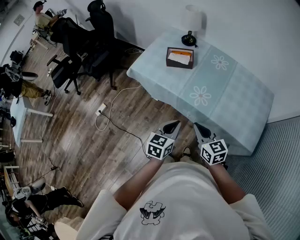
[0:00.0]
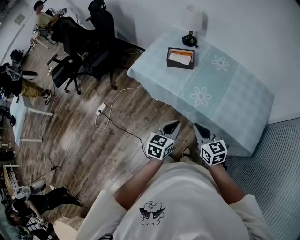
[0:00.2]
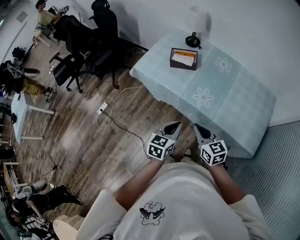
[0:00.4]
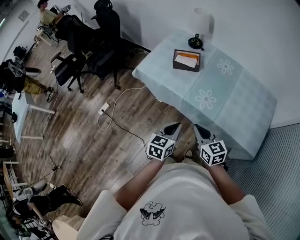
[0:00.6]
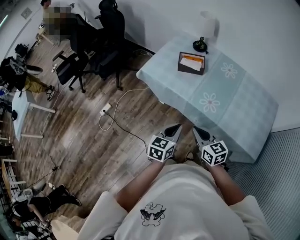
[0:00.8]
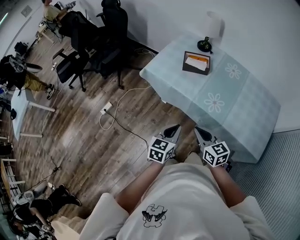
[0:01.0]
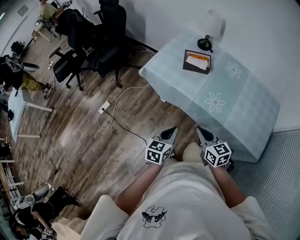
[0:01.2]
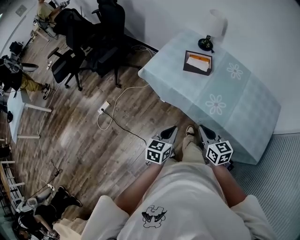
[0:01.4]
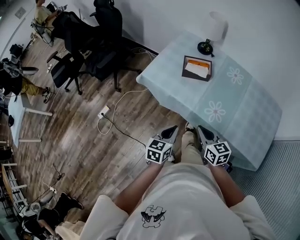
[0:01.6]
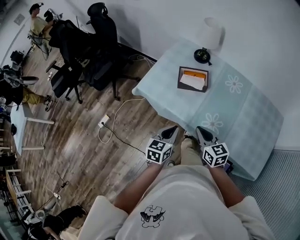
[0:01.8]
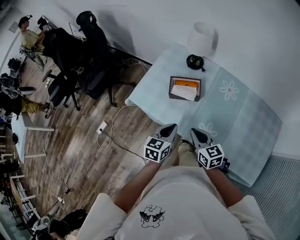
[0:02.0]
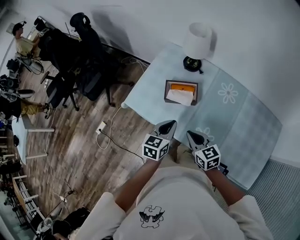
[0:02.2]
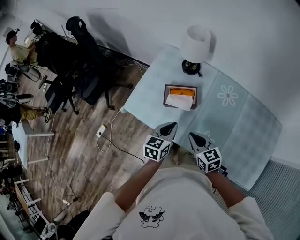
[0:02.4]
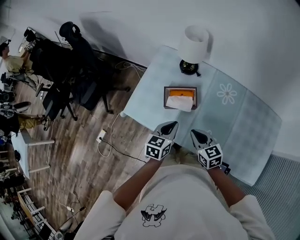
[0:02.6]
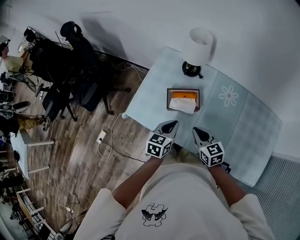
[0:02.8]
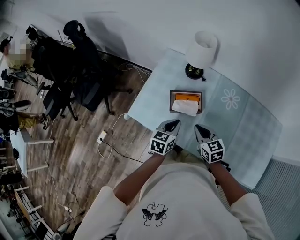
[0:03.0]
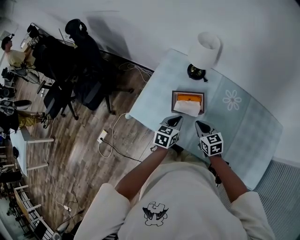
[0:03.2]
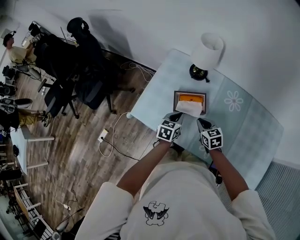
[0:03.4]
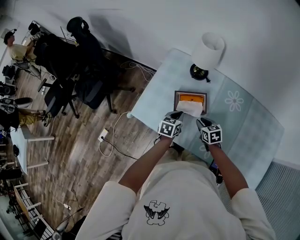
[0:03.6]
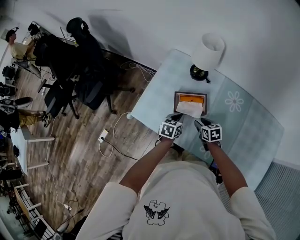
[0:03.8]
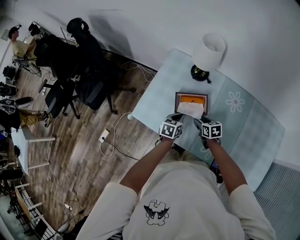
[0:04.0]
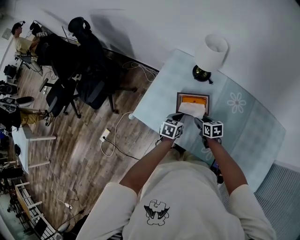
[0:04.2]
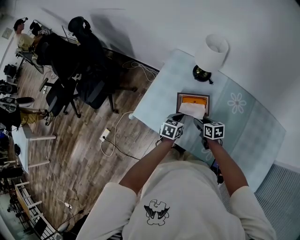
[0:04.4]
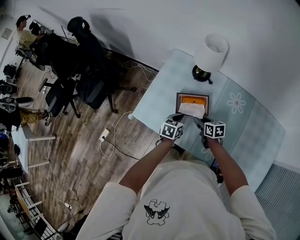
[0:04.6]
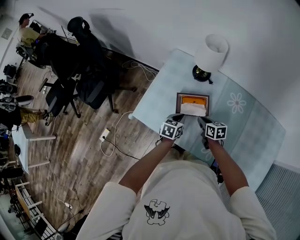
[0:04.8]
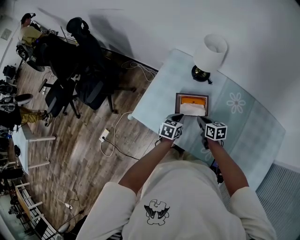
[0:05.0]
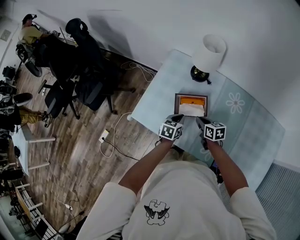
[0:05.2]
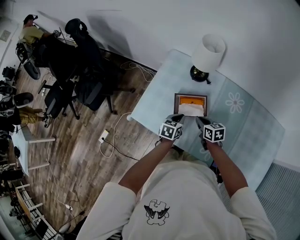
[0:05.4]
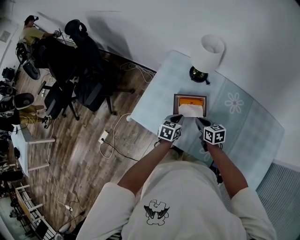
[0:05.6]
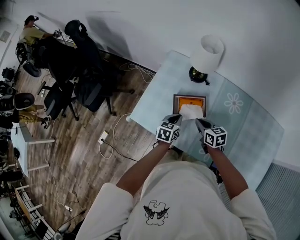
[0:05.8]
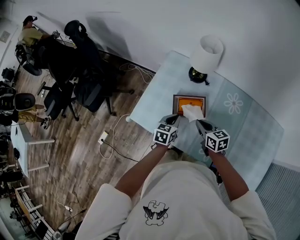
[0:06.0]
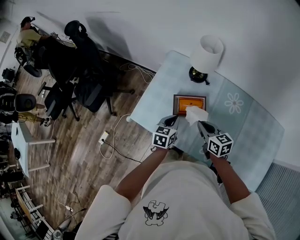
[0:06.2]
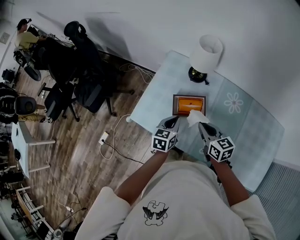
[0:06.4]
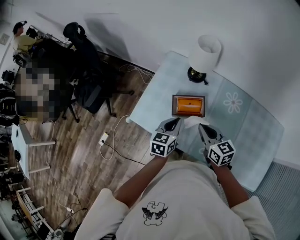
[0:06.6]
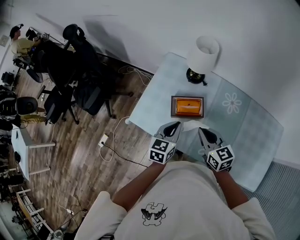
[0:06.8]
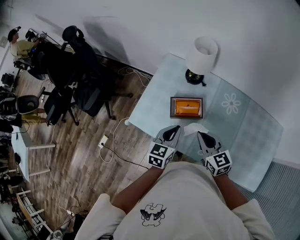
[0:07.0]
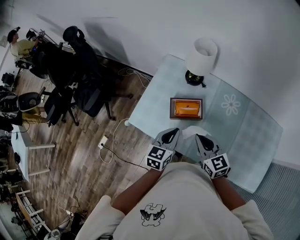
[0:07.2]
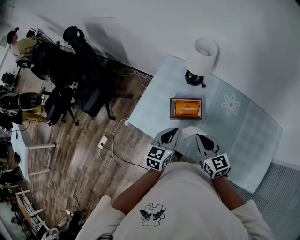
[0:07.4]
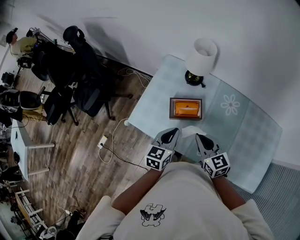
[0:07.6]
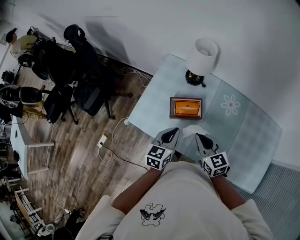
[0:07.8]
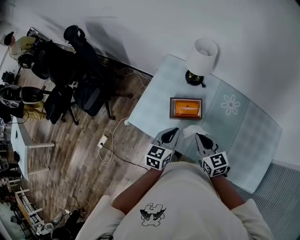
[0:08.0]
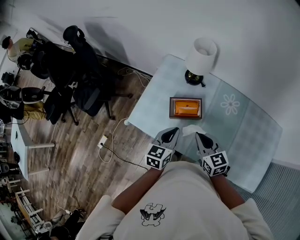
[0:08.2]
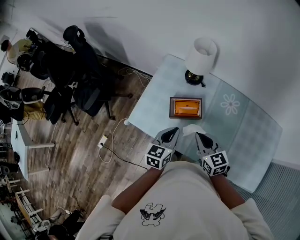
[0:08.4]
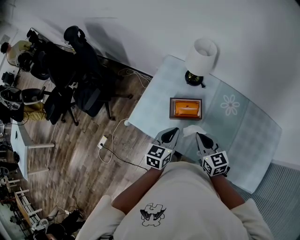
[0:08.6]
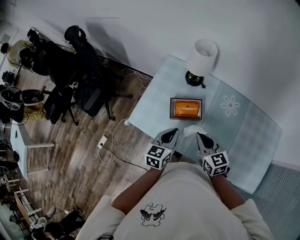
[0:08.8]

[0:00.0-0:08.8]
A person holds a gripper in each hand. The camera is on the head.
0.0 to 1.4 s: The left gripper travels to the left by roughly 10 cm, while the right gripper shifts about 10 cm to the left.
1.4 to 3.0 s: The two grippers go roughly 35 cm forward.
3.0 to 4.4 s: Both grippers travel together downward and forward, about 15 cm. The right gripper swivels roughly 20 degrees, and opens.
4.4 to 5.8 s: The right gripper heads upward, covering roughly 5 cm, and closes its fingers.
5.8 to 7.4 s: Both grippers travel together upward and backward, roughly 15 cm. The right gripper turns by approximately 20 degrees.
7.4 to 8.8 s: The two grippers keep their place.

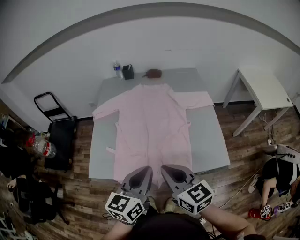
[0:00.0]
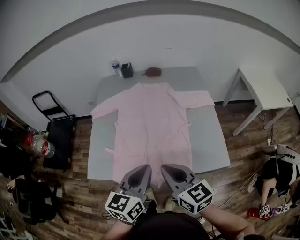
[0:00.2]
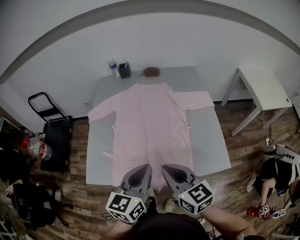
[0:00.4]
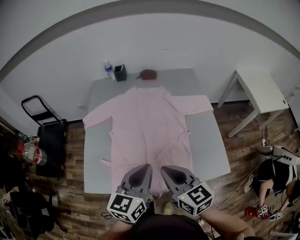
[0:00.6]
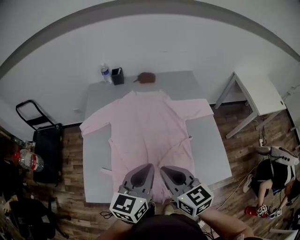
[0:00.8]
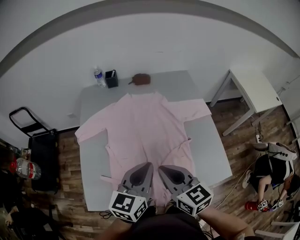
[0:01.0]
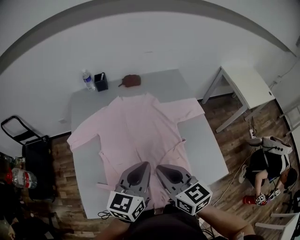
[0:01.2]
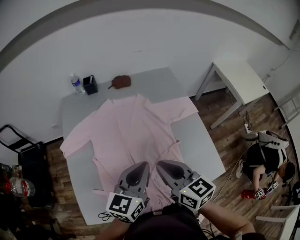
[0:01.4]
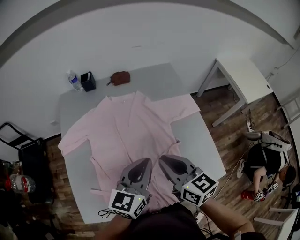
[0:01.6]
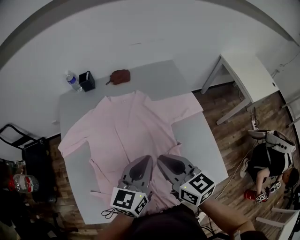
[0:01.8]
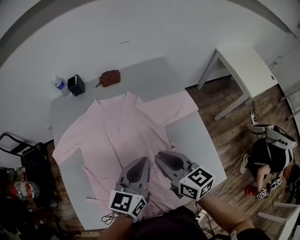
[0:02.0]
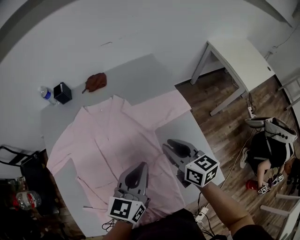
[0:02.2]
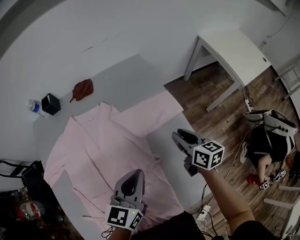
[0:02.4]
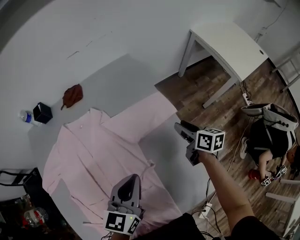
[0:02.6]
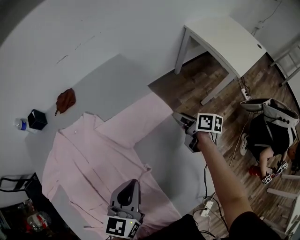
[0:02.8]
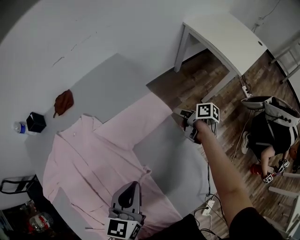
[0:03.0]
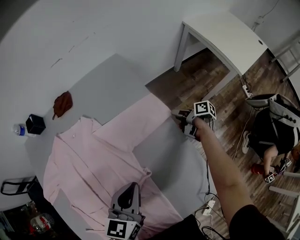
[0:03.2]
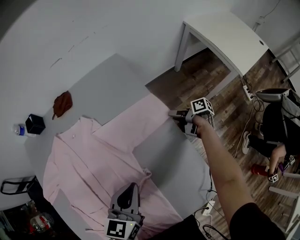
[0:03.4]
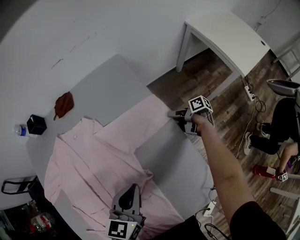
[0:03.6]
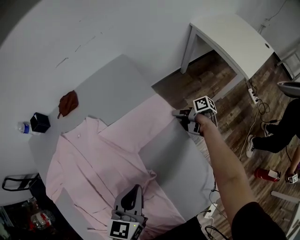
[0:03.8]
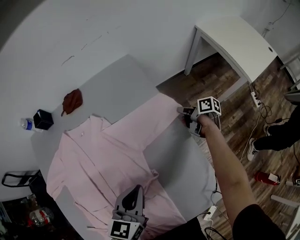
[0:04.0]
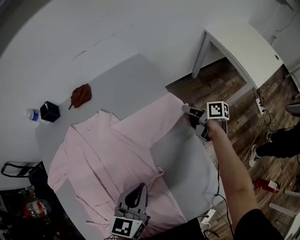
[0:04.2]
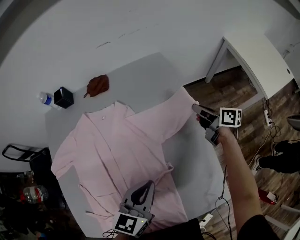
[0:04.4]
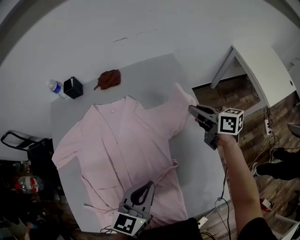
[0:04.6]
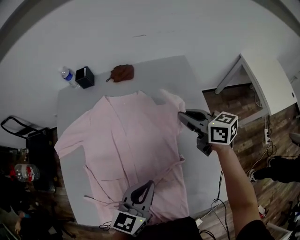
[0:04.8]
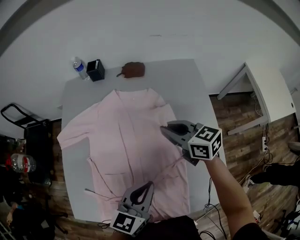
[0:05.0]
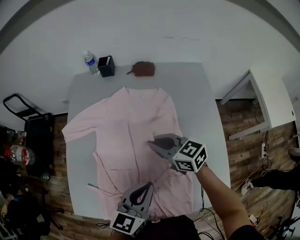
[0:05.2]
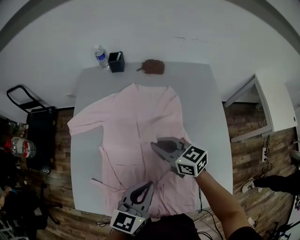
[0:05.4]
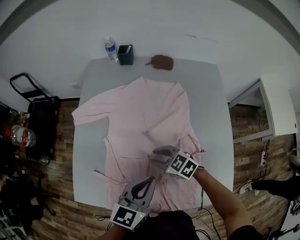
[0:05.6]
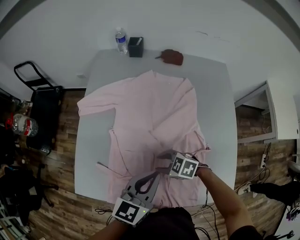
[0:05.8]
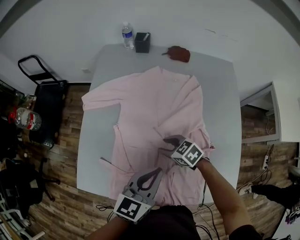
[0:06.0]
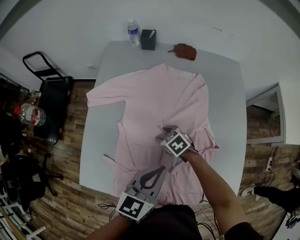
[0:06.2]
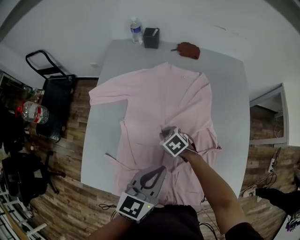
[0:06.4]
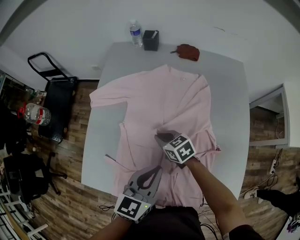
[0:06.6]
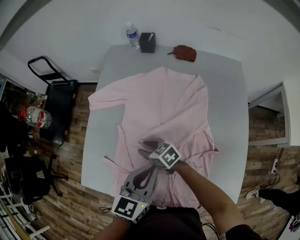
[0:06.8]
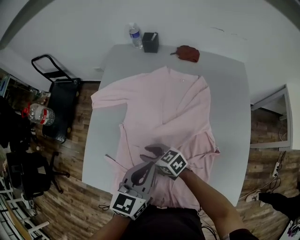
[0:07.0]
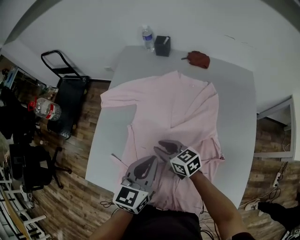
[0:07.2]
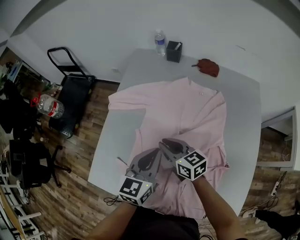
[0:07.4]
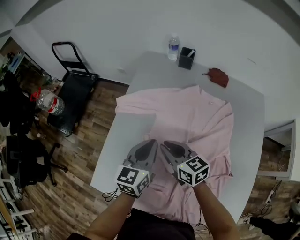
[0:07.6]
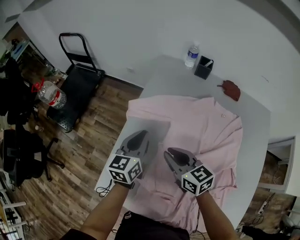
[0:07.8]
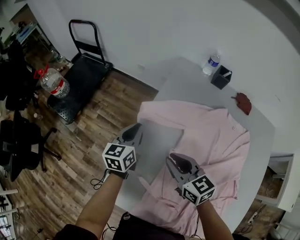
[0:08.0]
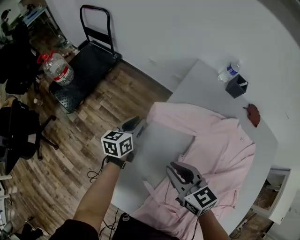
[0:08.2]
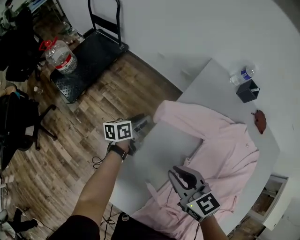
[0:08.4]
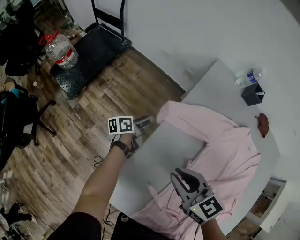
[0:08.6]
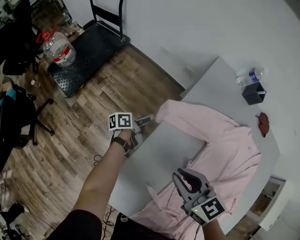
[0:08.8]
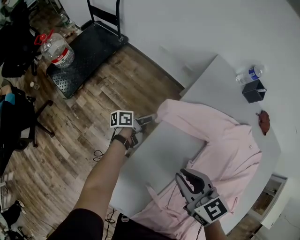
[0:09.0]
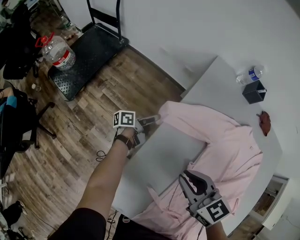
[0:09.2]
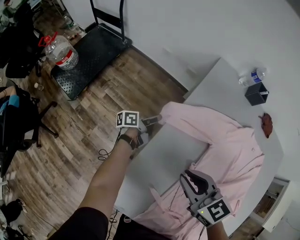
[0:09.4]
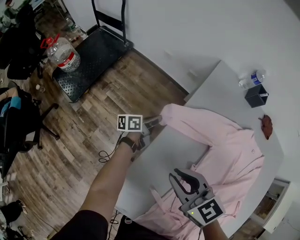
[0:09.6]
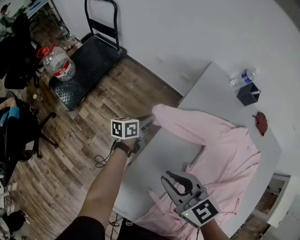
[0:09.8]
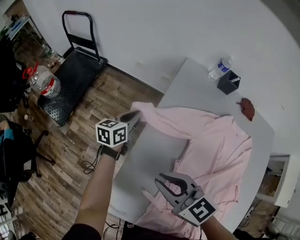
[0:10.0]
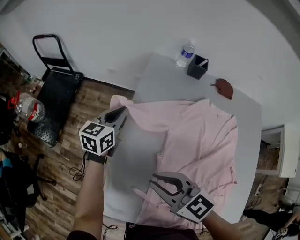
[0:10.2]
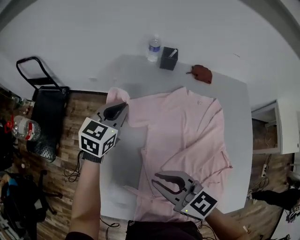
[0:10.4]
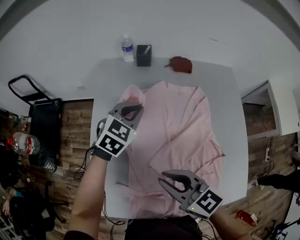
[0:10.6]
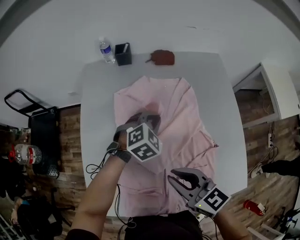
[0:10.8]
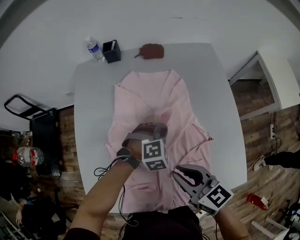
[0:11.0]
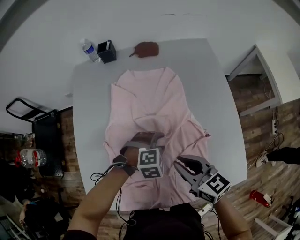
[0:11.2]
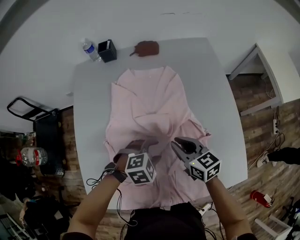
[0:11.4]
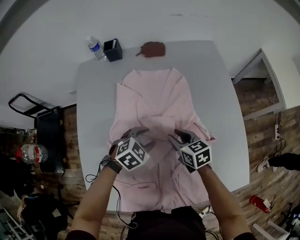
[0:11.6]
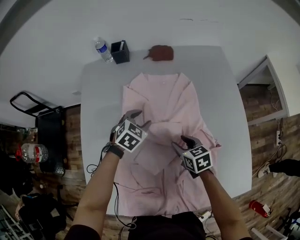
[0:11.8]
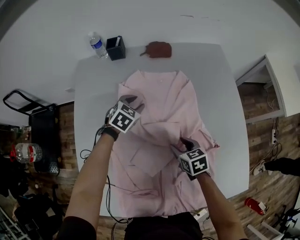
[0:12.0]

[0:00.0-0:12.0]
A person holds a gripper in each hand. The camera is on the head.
0.0 to 1.6 s: Both grippers move forward, some 25 cm.
1.6 to 3.0 s: The left gripper heads to the right, forward and downward, covering approximately 20 cm. Meanwhile the right gripper travels to the right, forward and downward by approximately 60 cm, rolls clockwise, seen from behind, by some 60 degrees, and opens up.
3.0 to 4.4 s: The right gripper is displaced upward and to the left by approximately 15 cm, swivels about 40 degrees, and closes up.
4.4 to 6.0 s: The right gripper ends up about 50 cm from where it was, angles its fingers downward, by about 30 degrees, and opens. Meanwhile the left gripper ends up about 25 cm from where it was.
6.0 to 7.6 s: The right gripper is displaced upward, to the left and forward by some 15 cm, swivels some 30 degrees, and closes up; the left gripper travels forward and to the left by some 20 cm, and swivels approximately 20 degrees.
7.6 to 9.0 s: The right gripper is displaced to the left and forward by approximately 15 cm; the left gripper shifts approximately 40 cm downward, forward and to the left, twists some 60 degrees counterclockwise, seen from behind, and opens its fingers.
9.0 to 10.4 s: The left gripper is displaced upward and to the right by some 35 cm, twists some 80 degrees clockwise, seen from behind, and closes up. Meanwhile the right gripper heads upward, to the right and backward, covering about 15 cm.
10.4 to 12.0 s: The left gripper moves roughly 30 cm, swivels approximately 30 degrees, and opens; the right gripper ends up roughly 35 cm from where it was, angles its fingers downward, by roughly 30 degrees, and opens.

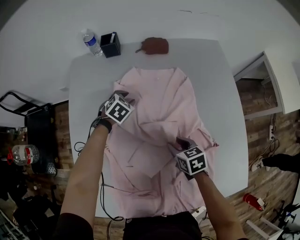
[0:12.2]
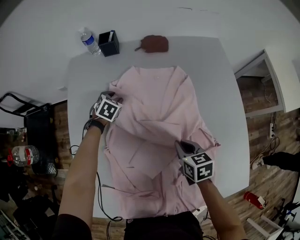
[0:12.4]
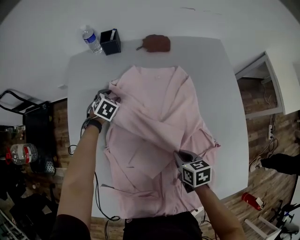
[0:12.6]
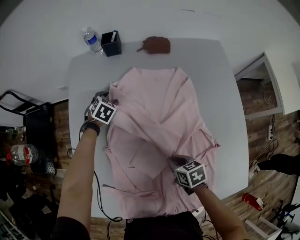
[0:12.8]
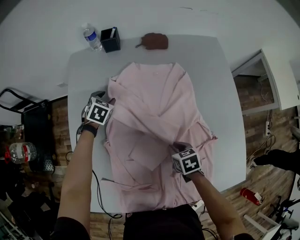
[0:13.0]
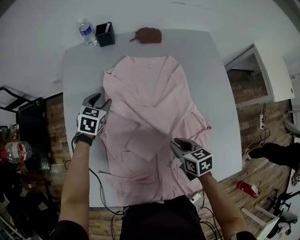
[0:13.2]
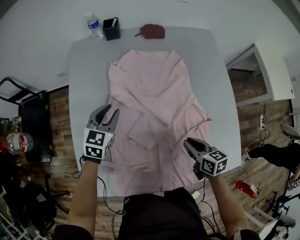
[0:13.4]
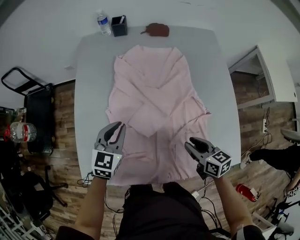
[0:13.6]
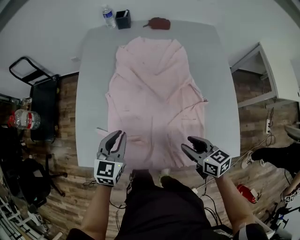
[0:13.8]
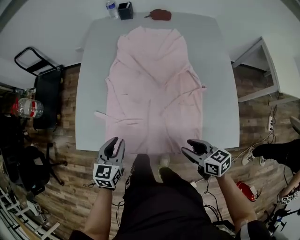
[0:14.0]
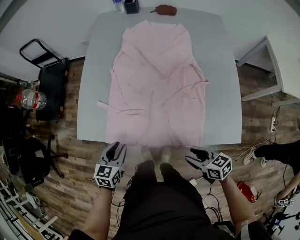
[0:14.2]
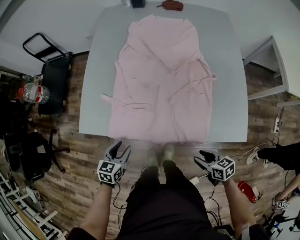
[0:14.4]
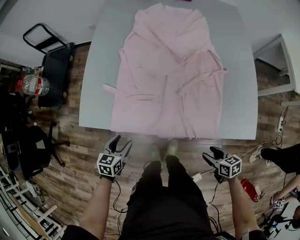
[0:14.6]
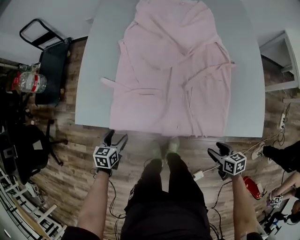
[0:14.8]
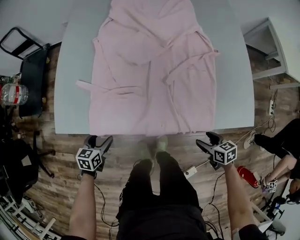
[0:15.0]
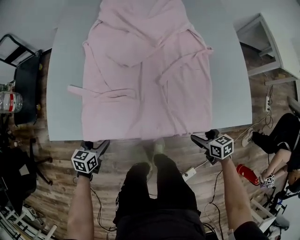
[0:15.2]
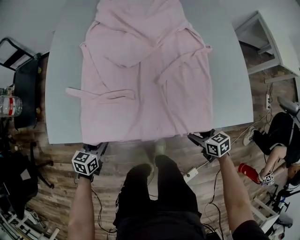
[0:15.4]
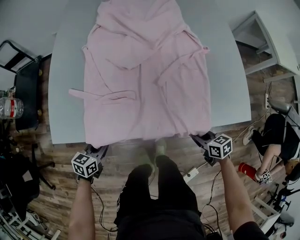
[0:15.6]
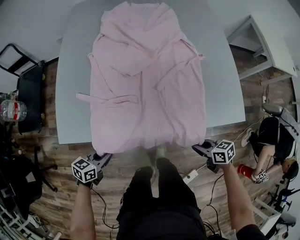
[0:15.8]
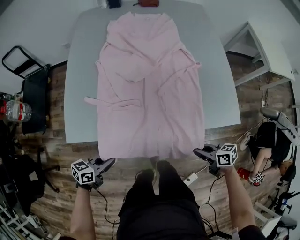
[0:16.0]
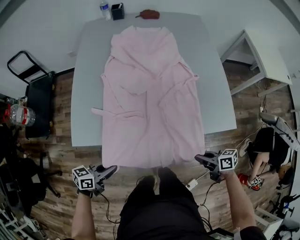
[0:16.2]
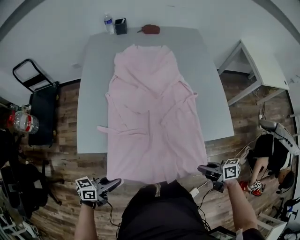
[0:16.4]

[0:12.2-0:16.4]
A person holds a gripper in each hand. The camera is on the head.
12.2 to 13.6 s: The left gripper shifts about 30 cm backward and upward, tips its fingers upward by about 30 degrees, and closes; the right gripper goes roughly 20 cm backward and upward.
13.6 to 15.0 s: The left gripper travels backward, downward and to the left by some 40 cm, changes its angle by some 30 degrees, and opens its fingers. Meanwhile the right gripper is displaced backward and downward by roughly 35 cm, and opens its fingers.
15.0 to 16.4 s: Both grippers travel together upward, some 20 cm. The right gripper swivels some 30 degrees, and closes; the left gripper angles its fingers upward, by about 30 degrees, and closes up.
